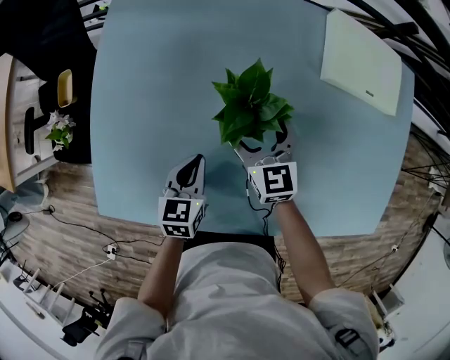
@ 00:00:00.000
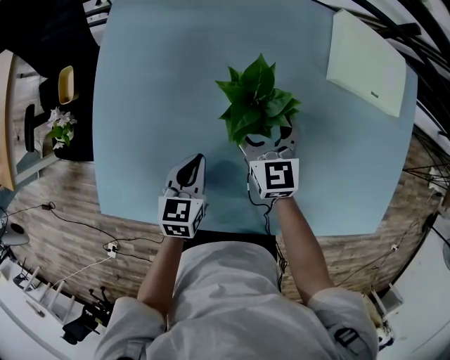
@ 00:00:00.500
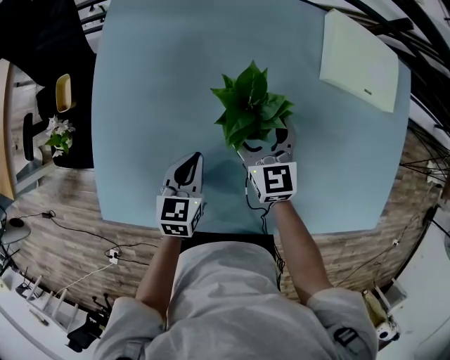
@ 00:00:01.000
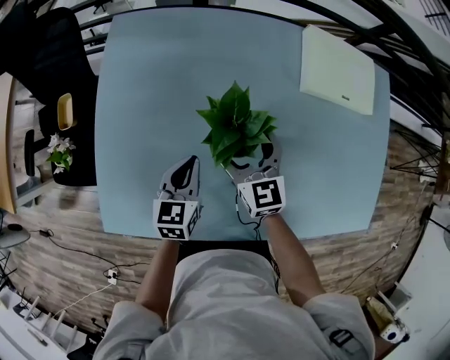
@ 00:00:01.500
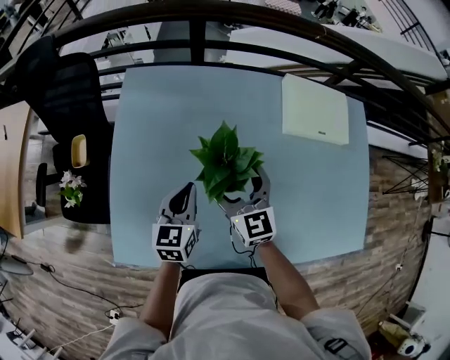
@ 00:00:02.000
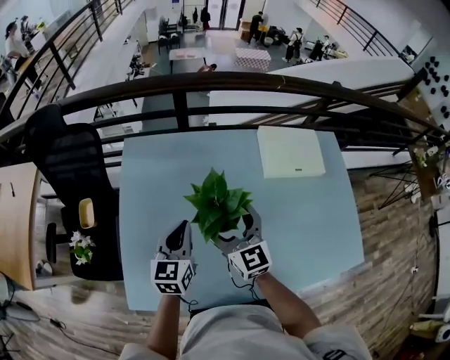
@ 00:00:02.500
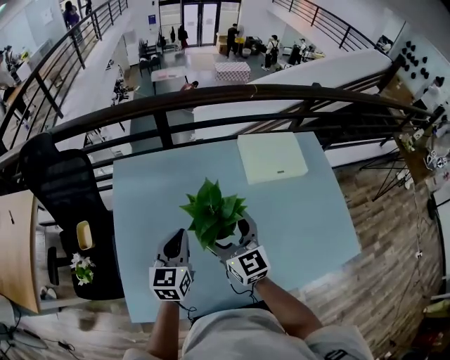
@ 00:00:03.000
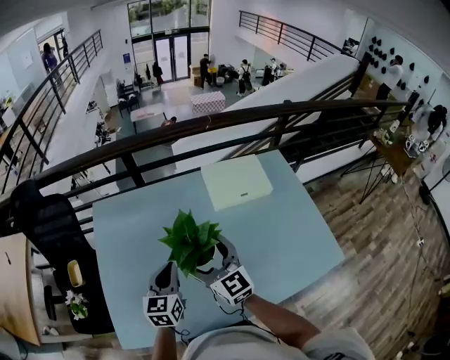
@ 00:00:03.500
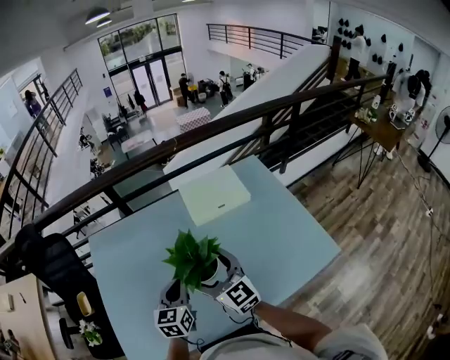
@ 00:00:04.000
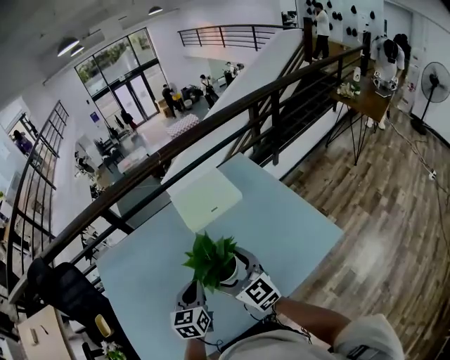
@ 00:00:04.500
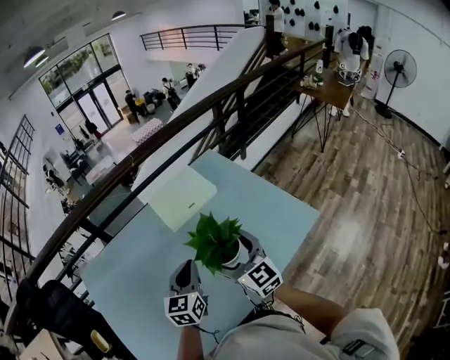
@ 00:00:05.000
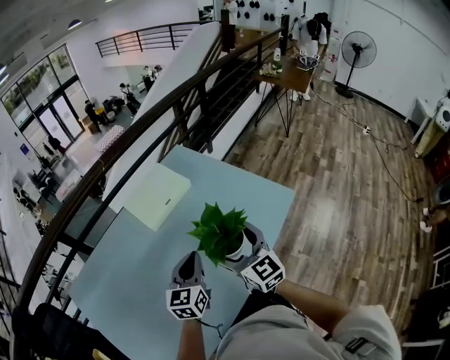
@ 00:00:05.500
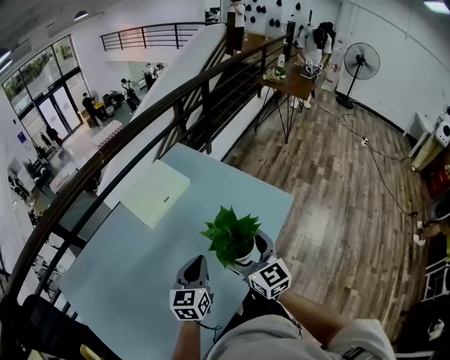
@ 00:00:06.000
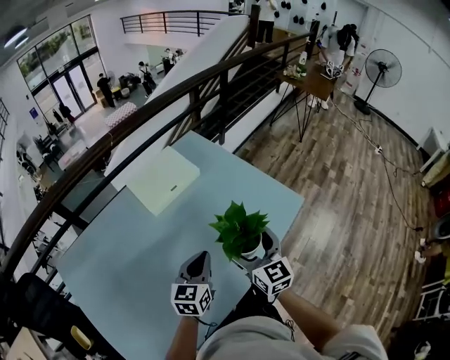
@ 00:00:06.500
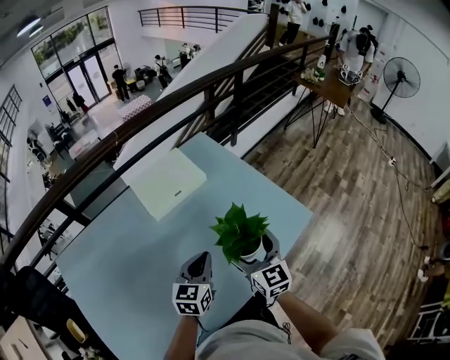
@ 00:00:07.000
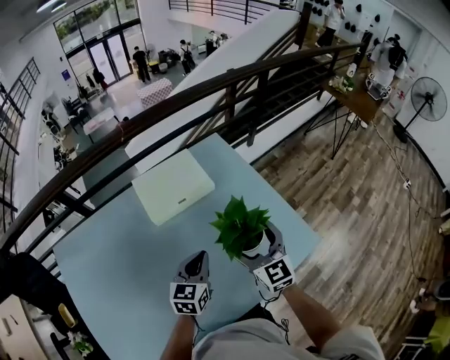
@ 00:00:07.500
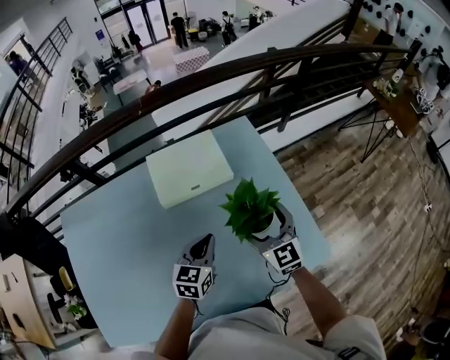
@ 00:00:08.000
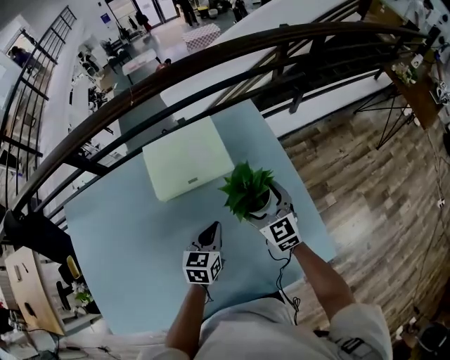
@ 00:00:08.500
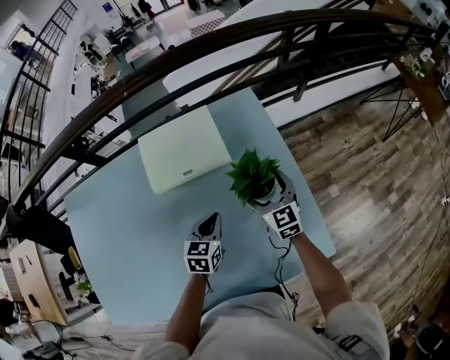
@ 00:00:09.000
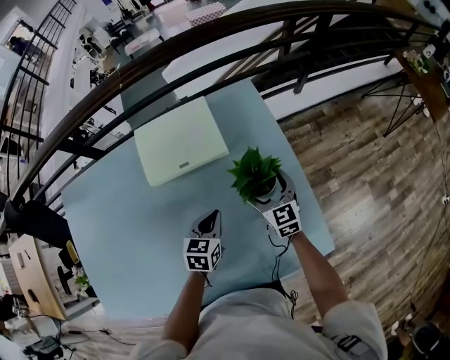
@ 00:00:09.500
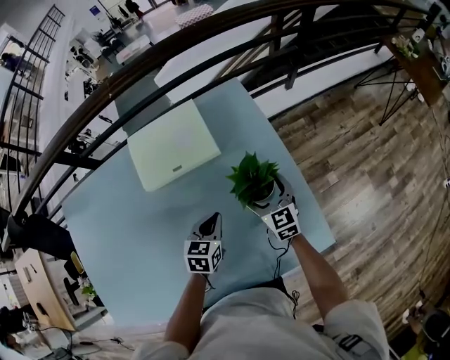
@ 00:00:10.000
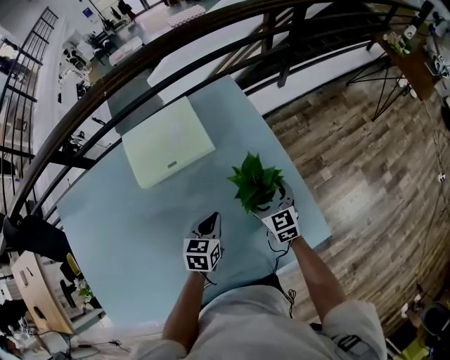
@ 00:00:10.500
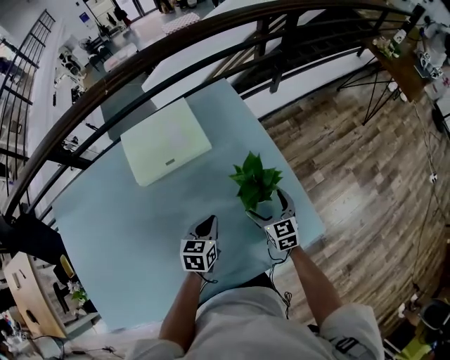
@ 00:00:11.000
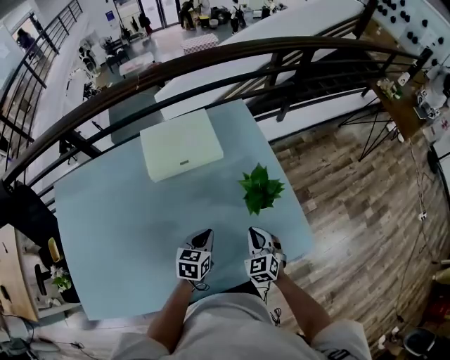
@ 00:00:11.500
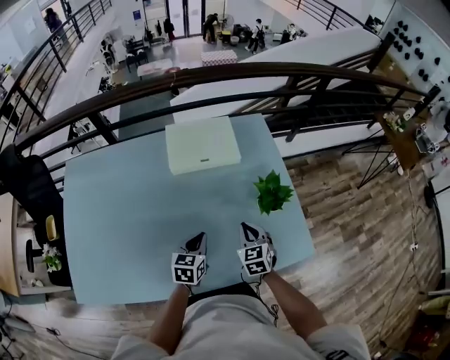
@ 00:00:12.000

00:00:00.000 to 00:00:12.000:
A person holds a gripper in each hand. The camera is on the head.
00:00:00.000 to 00:00:02.000: The right gripper heads upward, covering approximately 15 cm. Meanwhile the left gripper is displaced upward and forward by about 15 cm.
00:00:02.000 to 00:00:04.000: The right gripper moves to the right, upward and backward, some 25 cm; the left gripper travels to the right and upward by about 20 cm.
00:00:04.000 to 00:00:06.000: The right gripper changes place by about 20 cm, and swivels some 40 degrees. Meanwhile the left gripper ends up approximately 15 cm from where it was, and rotates roughly 40 degrees.
00:00:06.000 to 00:00:08.000: Both grippers travel together forward, some 20 cm. The left gripper turns by about 20 degrees. The right gripper rotates about 30 degrees.
00:00:08.000 to 00:00:10.000: Both grippers move downward and to the right, some 15 cm.
00:00:10.000 to 00:00:12.000: The grippers both shift backward and to the left by some 15 cm. The right gripper closes its fingers.

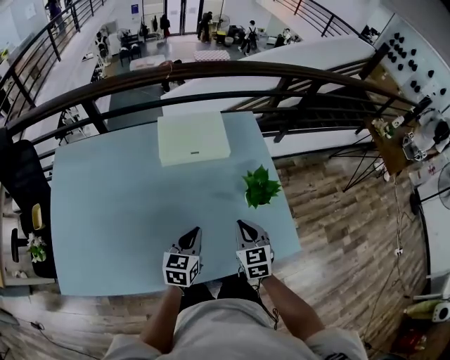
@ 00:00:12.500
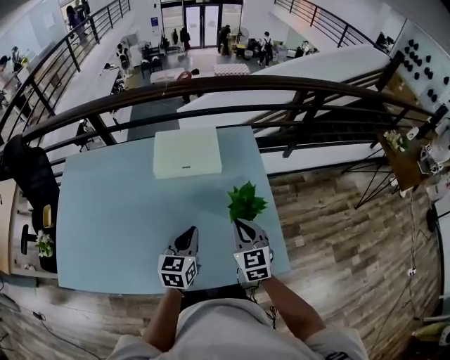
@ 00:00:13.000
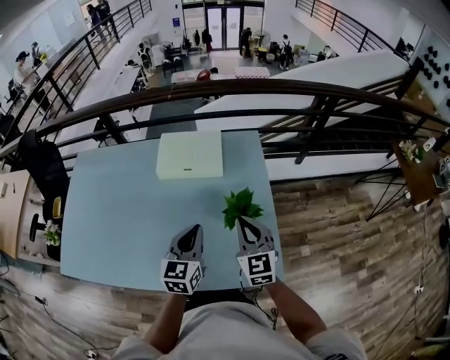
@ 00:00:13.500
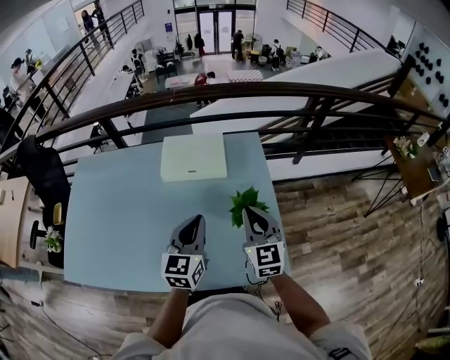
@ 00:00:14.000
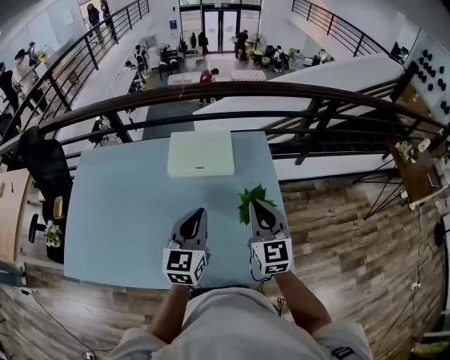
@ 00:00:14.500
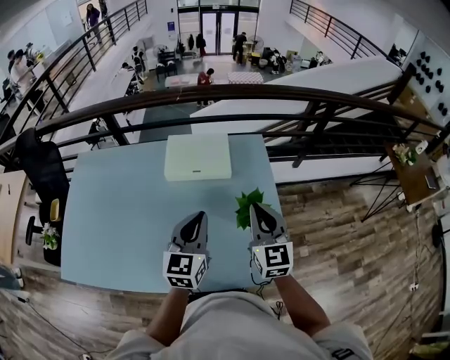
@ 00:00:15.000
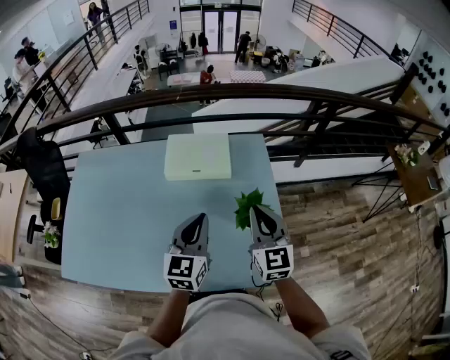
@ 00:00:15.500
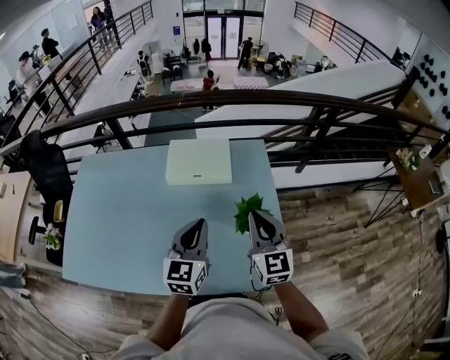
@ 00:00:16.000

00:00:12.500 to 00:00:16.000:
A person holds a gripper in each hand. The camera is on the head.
00:00:12.500 to 00:00:14.500: The right gripper heads upward, to the right and forward, covering approximately 20 cm, and changes its angle by approximately 30 degrees, while the left gripper heads upward, covering about 15 cm, and changes its angle by approximately 30 degrees.
00:00:14.500 to 00:00:16.000: The grippers make only small movements.

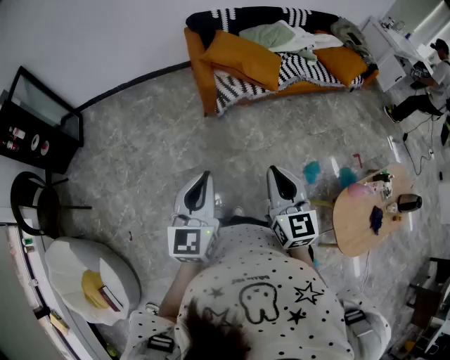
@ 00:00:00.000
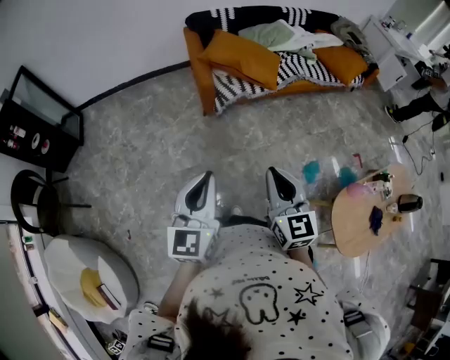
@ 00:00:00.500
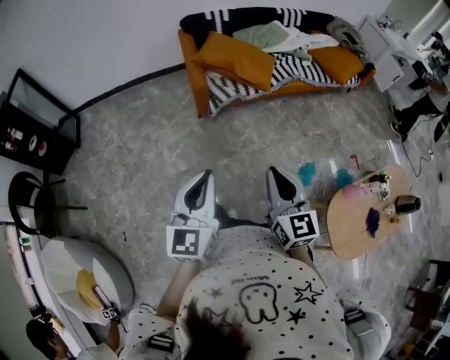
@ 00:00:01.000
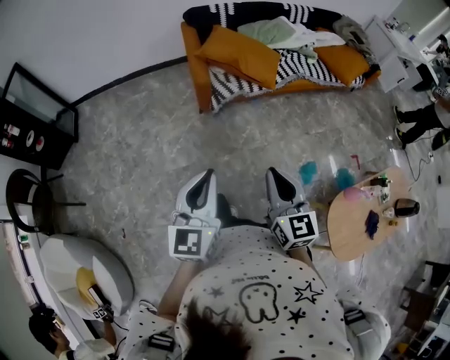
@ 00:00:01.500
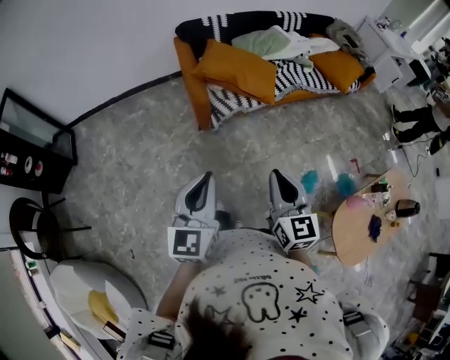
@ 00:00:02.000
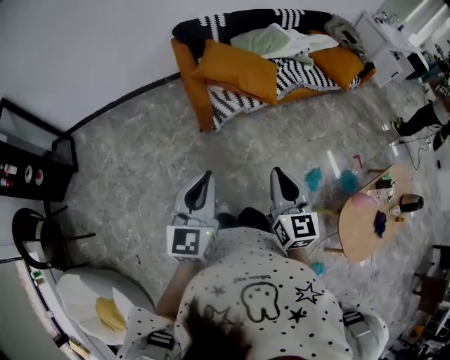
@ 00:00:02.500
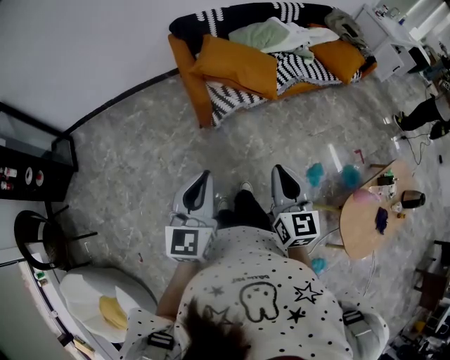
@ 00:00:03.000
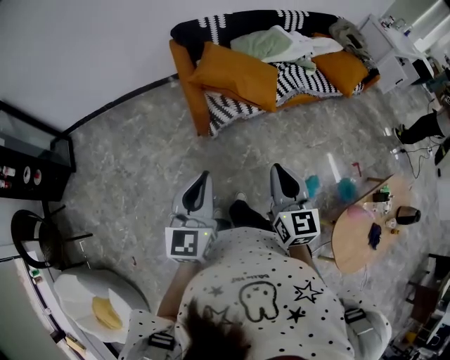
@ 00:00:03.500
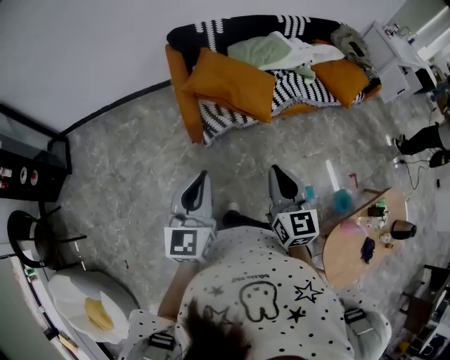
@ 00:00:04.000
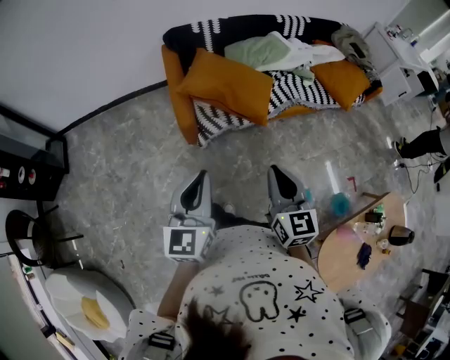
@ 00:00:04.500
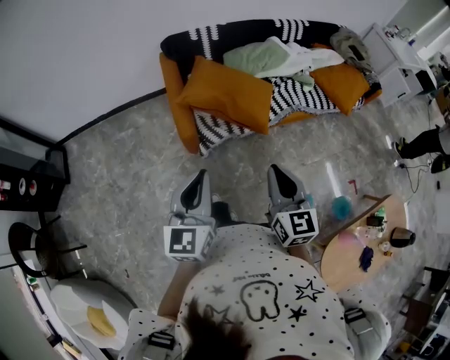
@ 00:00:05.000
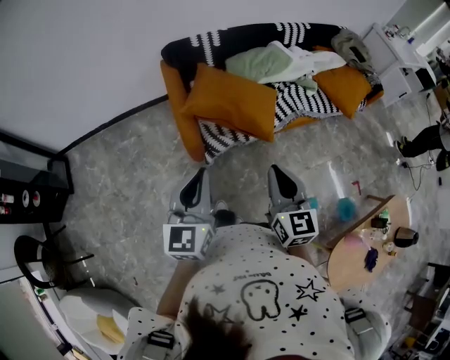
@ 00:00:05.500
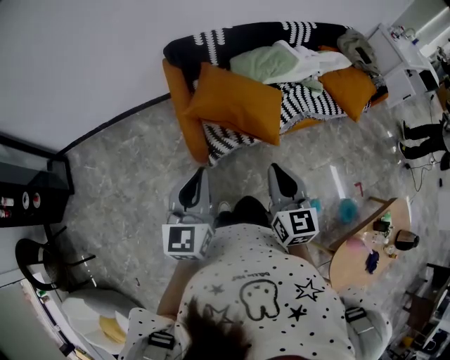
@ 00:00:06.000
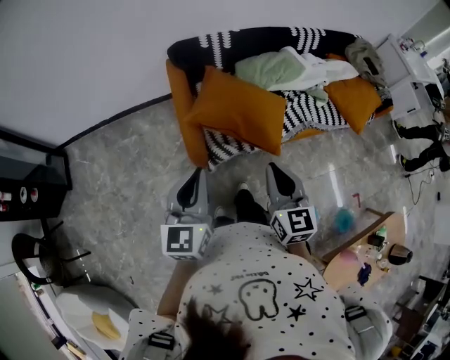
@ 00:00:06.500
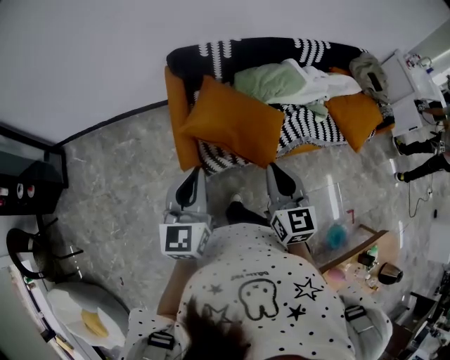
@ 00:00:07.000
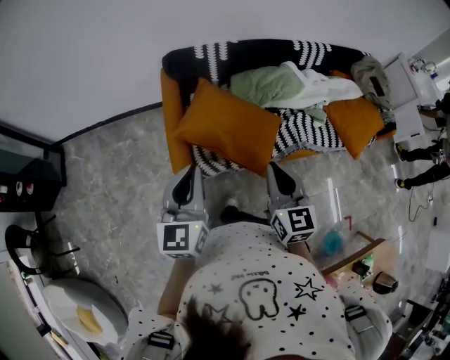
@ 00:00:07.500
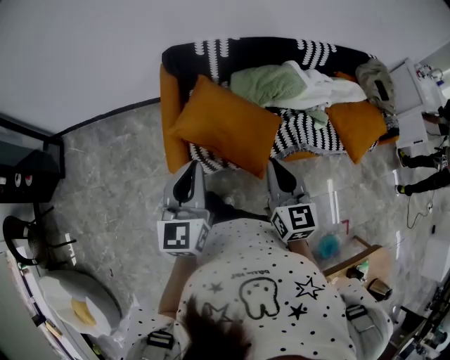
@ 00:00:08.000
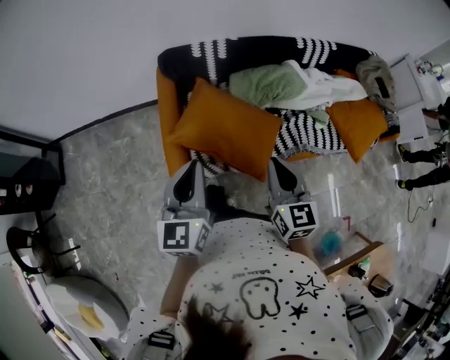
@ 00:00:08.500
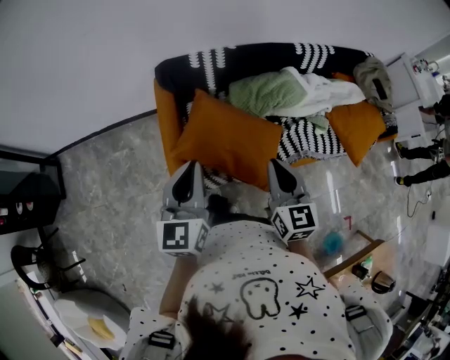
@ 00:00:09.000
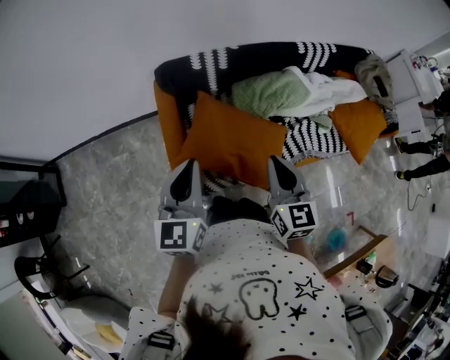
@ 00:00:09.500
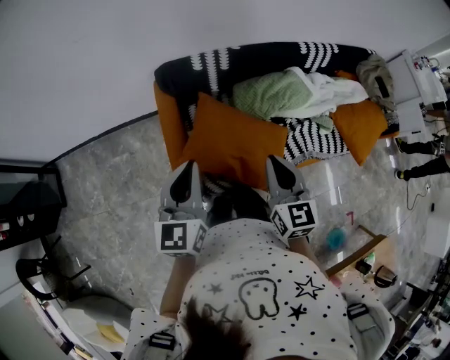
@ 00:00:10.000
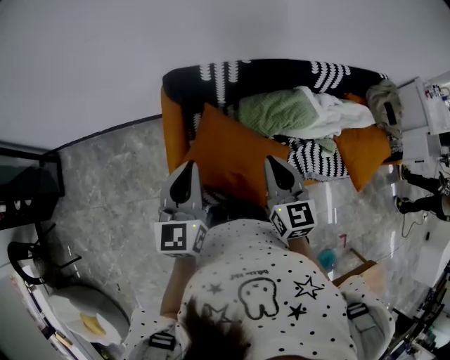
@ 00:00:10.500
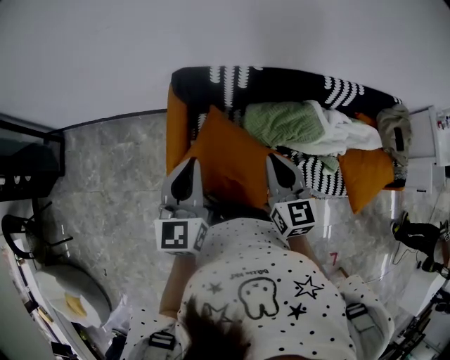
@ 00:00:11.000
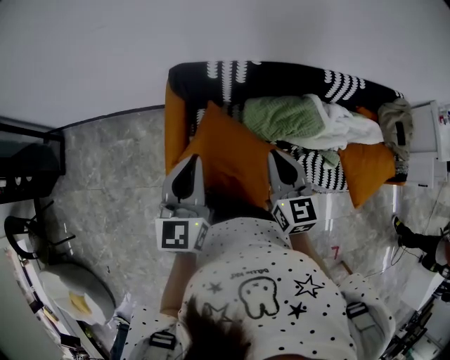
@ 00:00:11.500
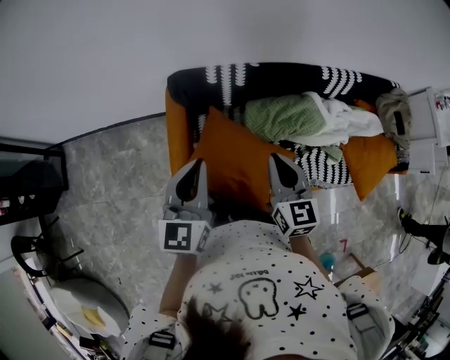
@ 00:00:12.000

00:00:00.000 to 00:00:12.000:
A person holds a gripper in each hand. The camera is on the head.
00:00:00.000 to 00:00:02.000: Both grippers move forward, approximately 10 cm.
00:00:02.000 to 00:00:04.000: The two grippers go roughly 15 cm forward.
00:00:04.000 to 00:00:06.000: The two grippers go approximately 15 cm forward.
00:00:06.000 to 00:00:08.000: The two grippers go about 20 cm forward and to the right.
00:00:08.000 to 00:00:10.000: The grippers both shift forward and to the left by some 15 cm.
00:00:10.000 to 00:00:12.000: The two grippers go approximately 10 cm forward.
